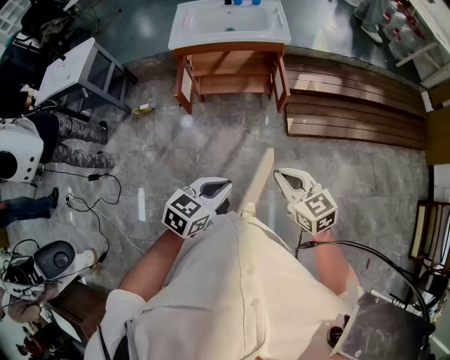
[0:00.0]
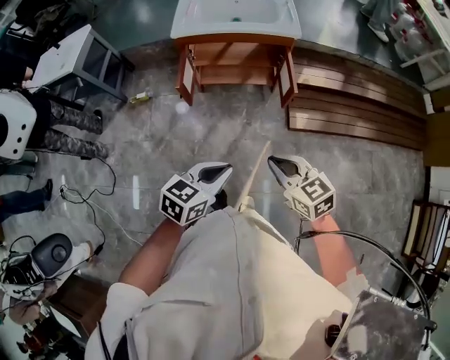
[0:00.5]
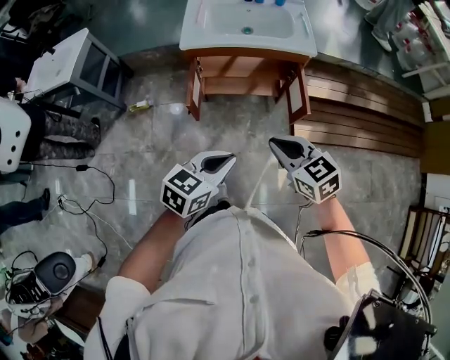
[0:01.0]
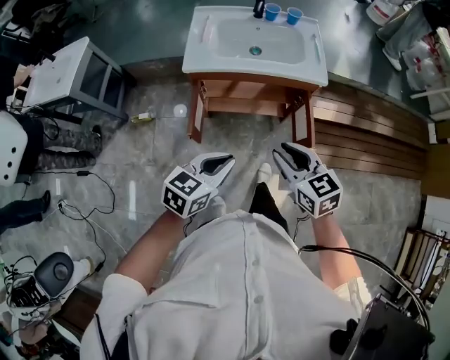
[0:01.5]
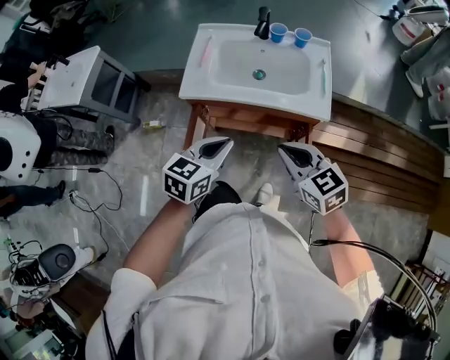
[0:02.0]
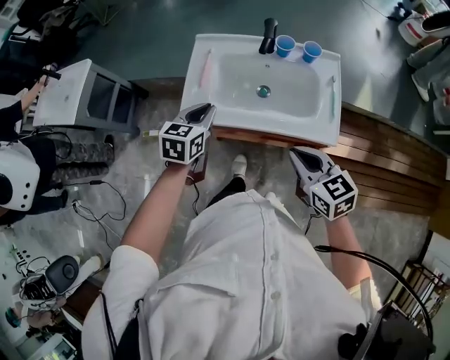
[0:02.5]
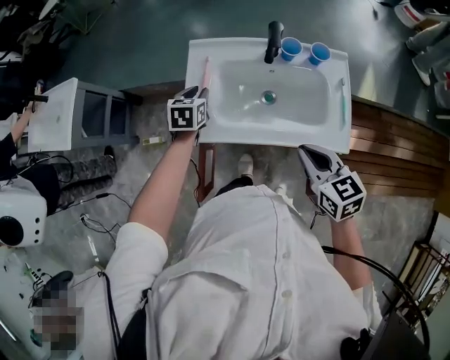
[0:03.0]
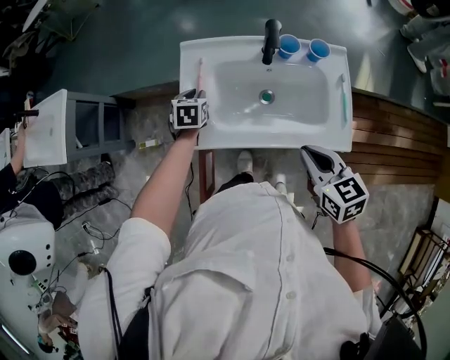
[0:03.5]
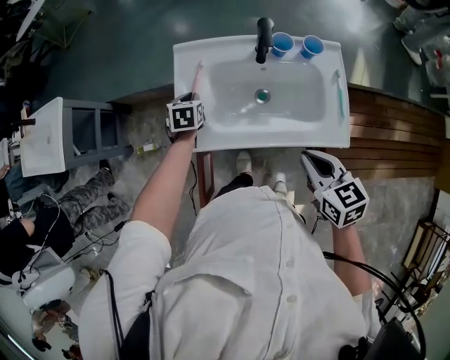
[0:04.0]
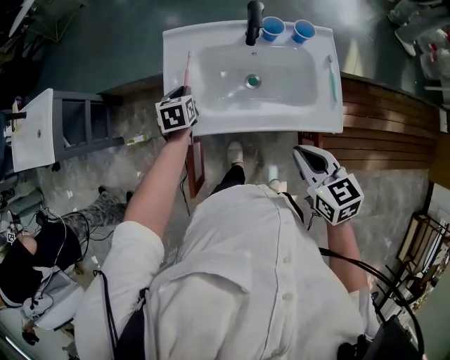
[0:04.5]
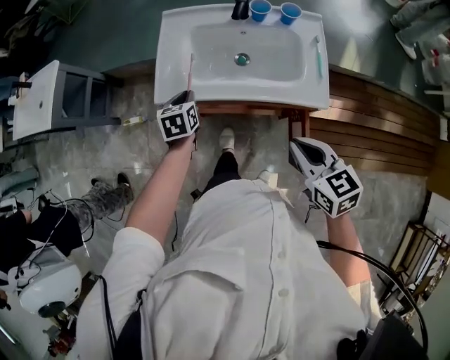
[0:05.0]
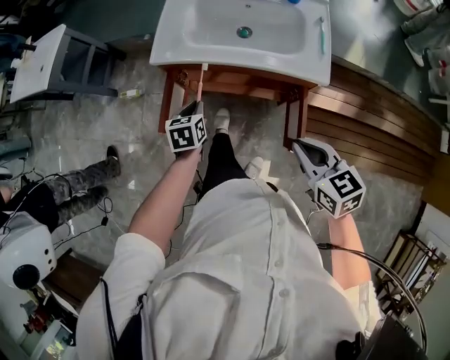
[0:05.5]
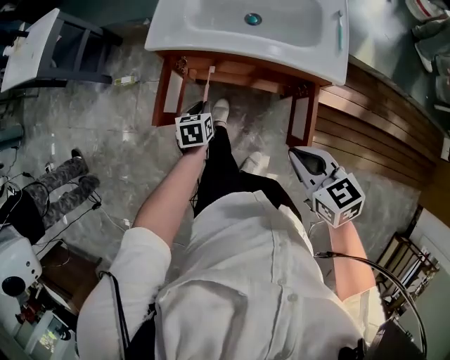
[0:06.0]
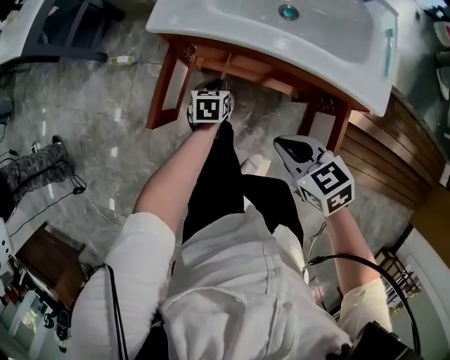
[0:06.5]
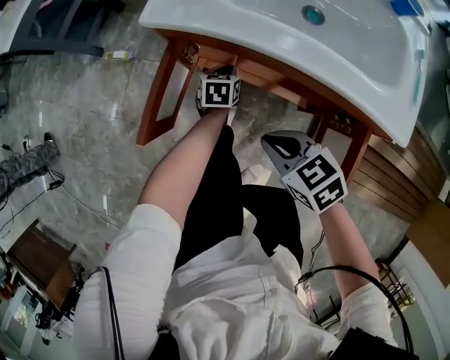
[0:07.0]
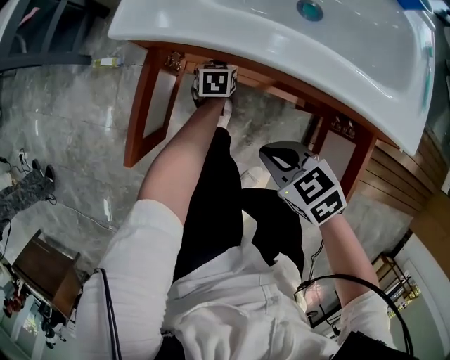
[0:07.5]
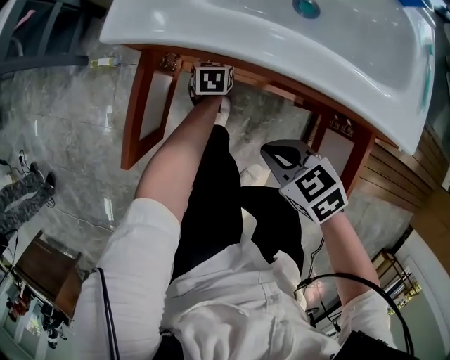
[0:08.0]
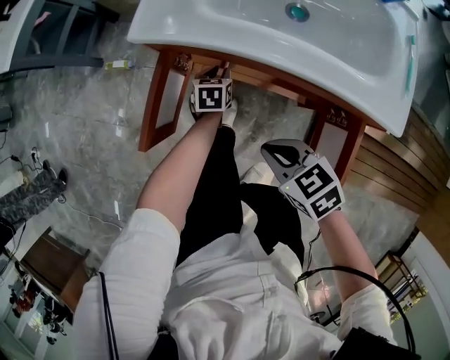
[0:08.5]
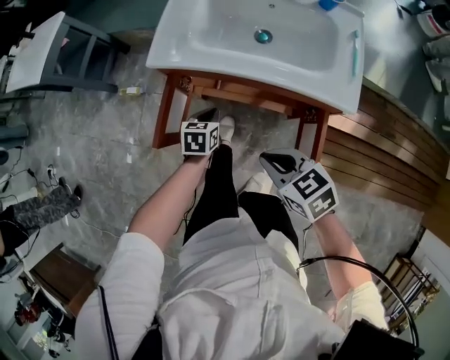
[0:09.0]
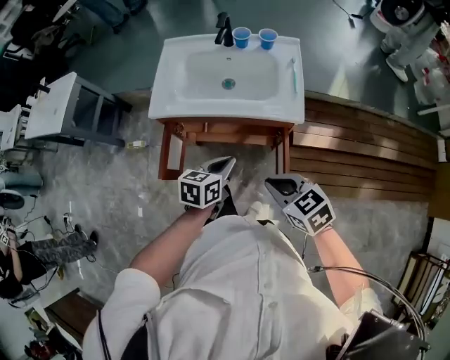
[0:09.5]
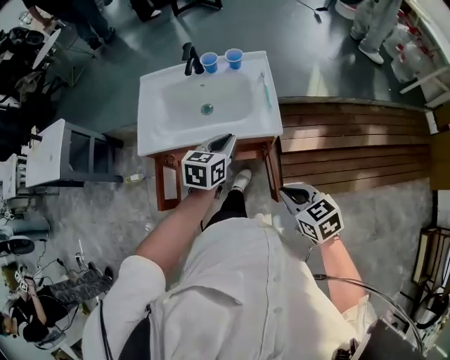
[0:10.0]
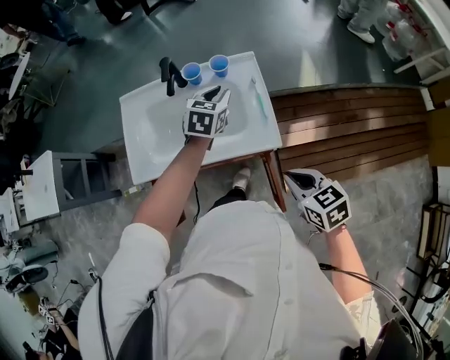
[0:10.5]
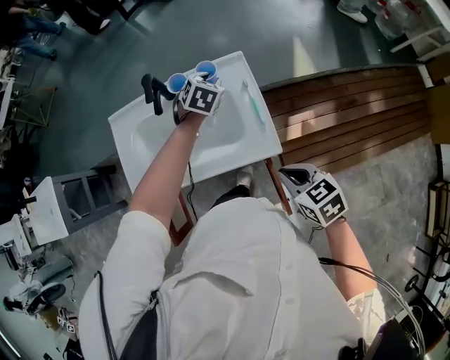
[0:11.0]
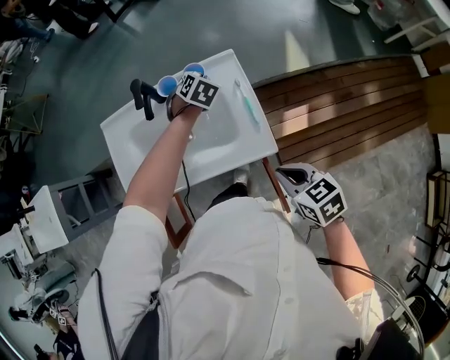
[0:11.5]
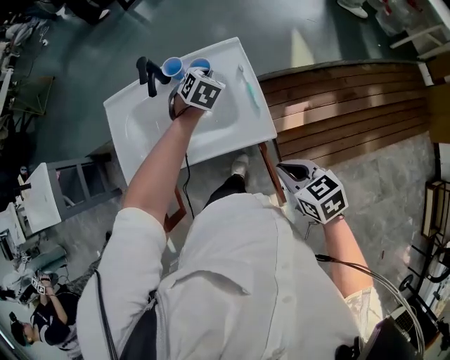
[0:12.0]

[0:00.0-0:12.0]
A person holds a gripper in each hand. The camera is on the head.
0:00.0 to 0:02.0: Both grippers are carried forward, roughly 50 cm. The right gripper opens, then closes again.
0:02.0 to 0:04.0: The left gripper travels forward and downward by roughly 50 cm, and swivels approximately 30 degrees, while the right gripper travels forward by roughly 15 cm, and turns by about 30 degrees.
0:04.0 to 0:06.0: The left gripper is displaced backward by some 35 cm; the right gripper shifts some 25 cm backward, and turns by about 20 degrees.
0:06.0 to 0:08.0: The right gripper travels downward and forward by roughly 30 cm, and rotates approximately 20 degrees. The left gripper shifts roughly 30 cm downward, forward and to the right.
0:08.0 to 0:10.0: The left gripper shifts about 50 cm upward, and swivels roughly 40 degrees. The right gripper travels upward by roughly 30 cm, and turns by about 30 degrees.
0:10.0 to 0:12.0: The left gripper is displaced forward by about 25 cm, and turns by roughly 40 degrees. The right gripper heads forward, covering approximately 10 cm.

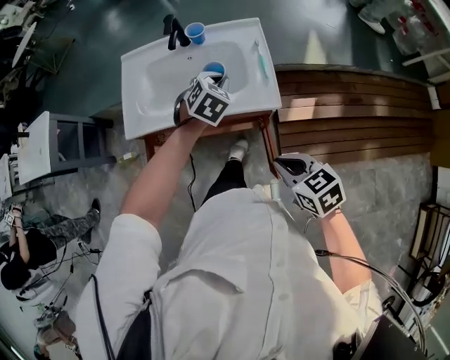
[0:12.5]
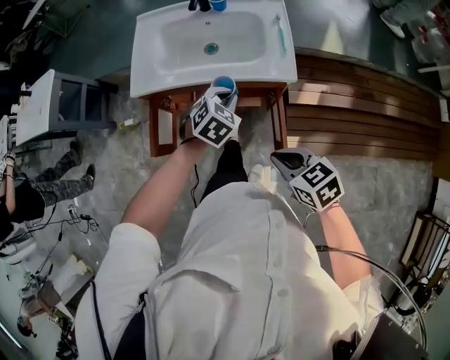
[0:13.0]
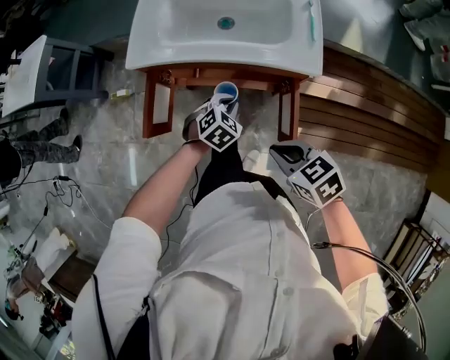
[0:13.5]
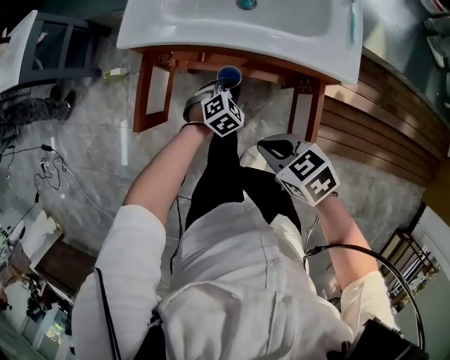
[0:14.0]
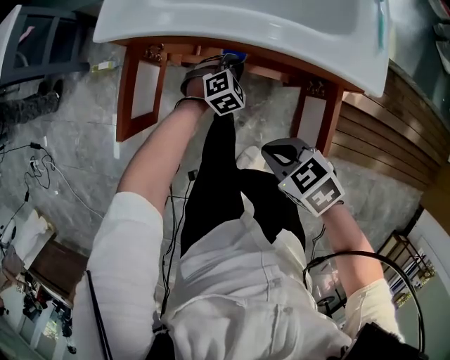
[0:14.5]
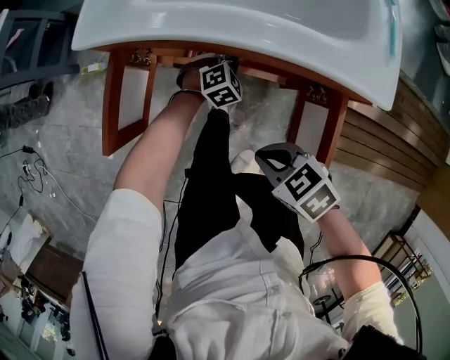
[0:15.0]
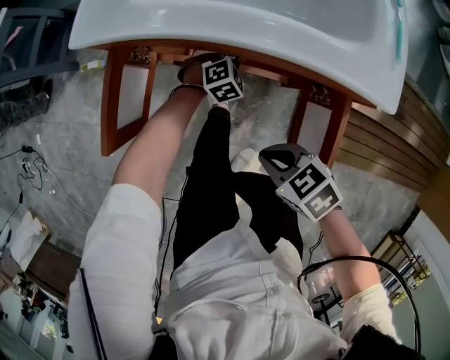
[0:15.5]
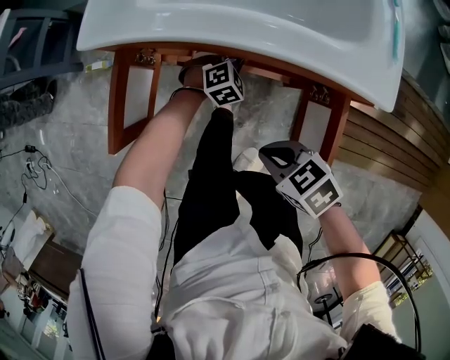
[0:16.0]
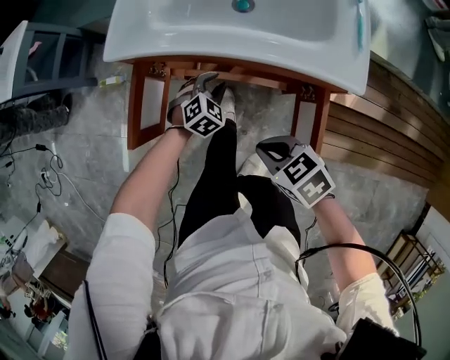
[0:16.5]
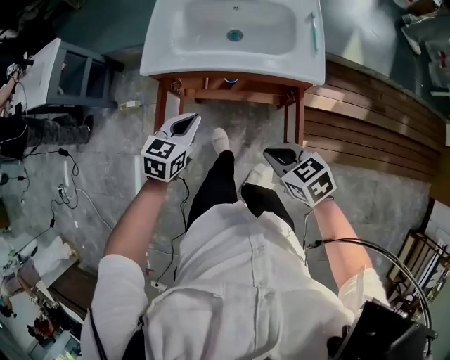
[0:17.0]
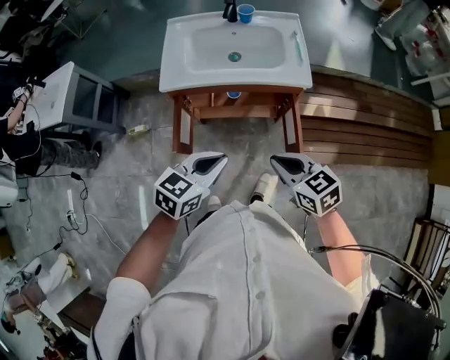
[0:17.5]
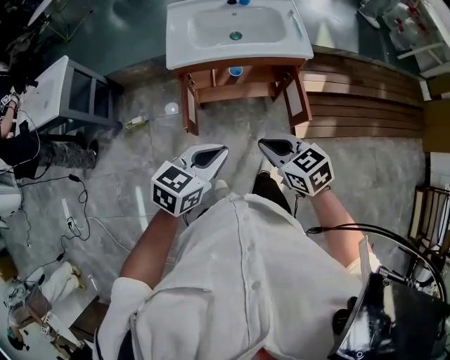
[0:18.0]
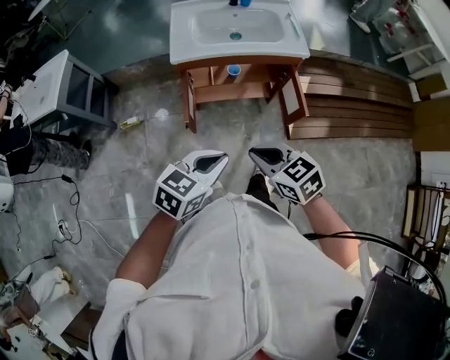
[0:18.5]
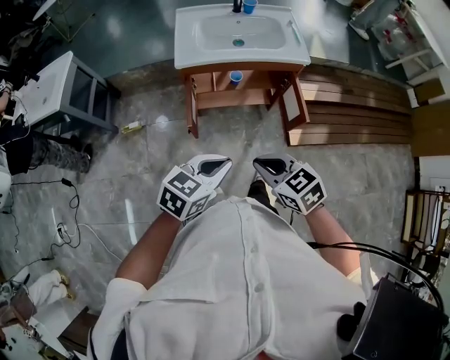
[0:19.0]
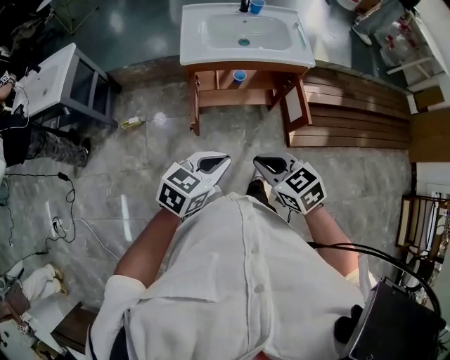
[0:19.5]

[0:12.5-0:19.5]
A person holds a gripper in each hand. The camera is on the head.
0:12.5 to 0:14.5: The left gripper moves downward, about 35 cm; the right gripper is displaced downward and to the left by approximately 25 cm, and rotates some 30 degrees.
0:14.5 to 0:16.0: The left gripper shifts by about 5 cm.
0:16.0 to 0:17.5: The right gripper travels upward by some 30 cm, and rotates about 40 degrees. Meanwhile the left gripper goes approximately 50 cm upward, rotates roughly 50 degrees, and closes up.
0:17.5 to 0:19.5: The right gripper goes some 25 cm to the left and backward. The left gripper goes approximately 20 cm backward and to the left.

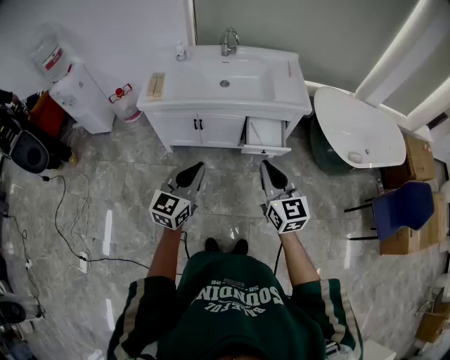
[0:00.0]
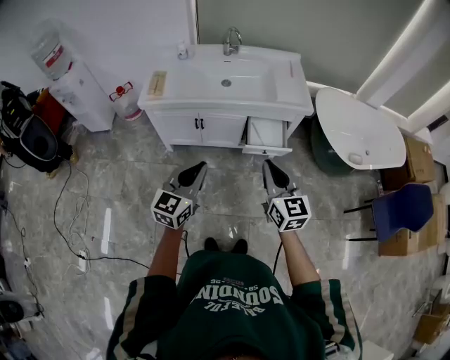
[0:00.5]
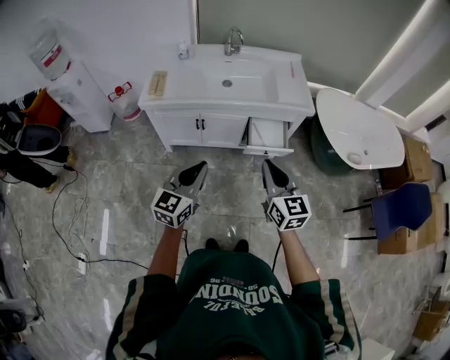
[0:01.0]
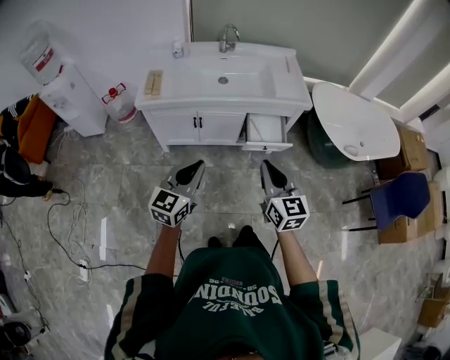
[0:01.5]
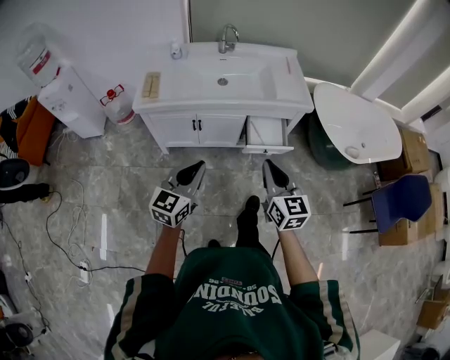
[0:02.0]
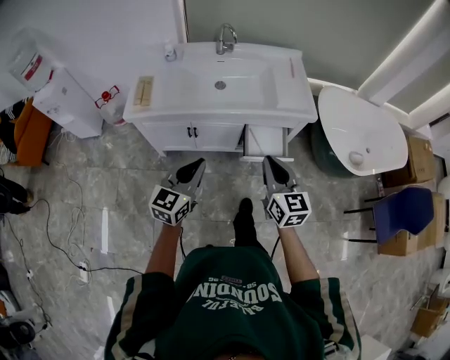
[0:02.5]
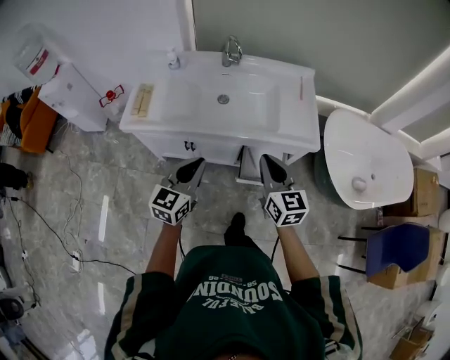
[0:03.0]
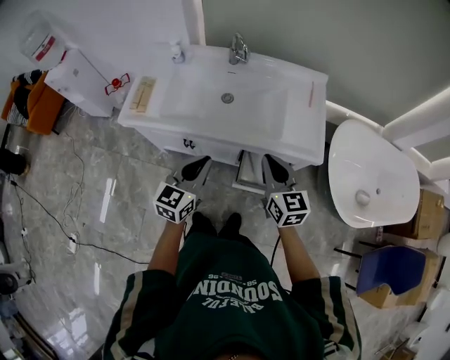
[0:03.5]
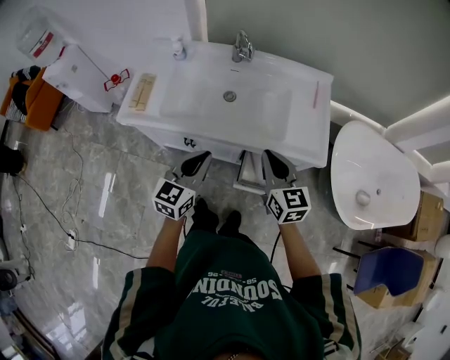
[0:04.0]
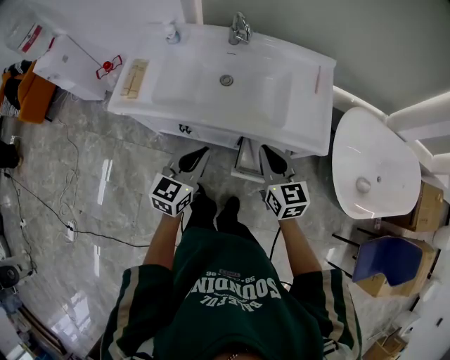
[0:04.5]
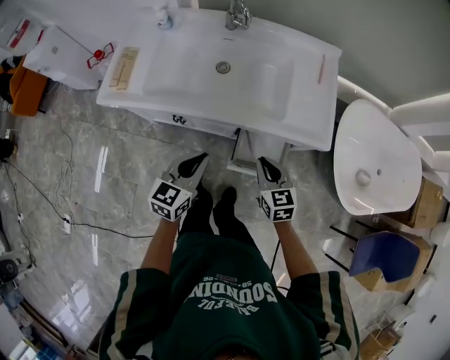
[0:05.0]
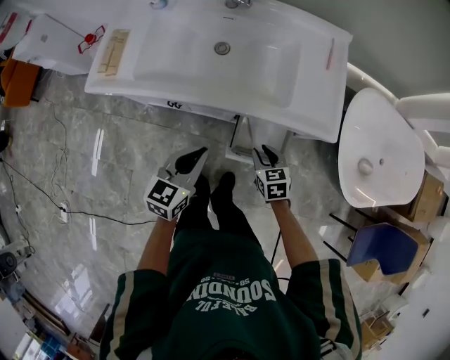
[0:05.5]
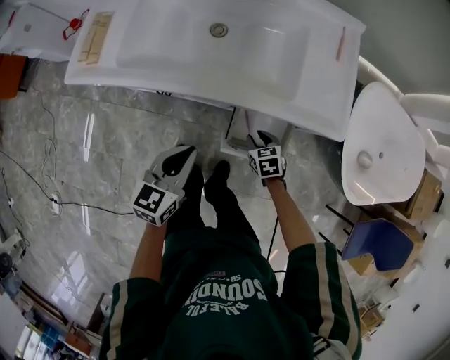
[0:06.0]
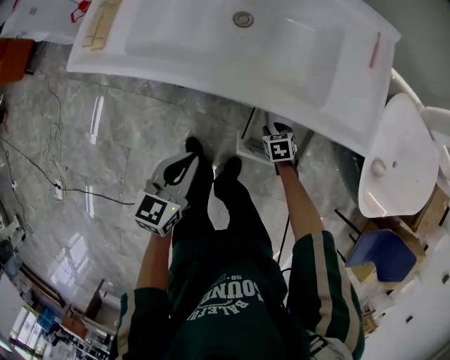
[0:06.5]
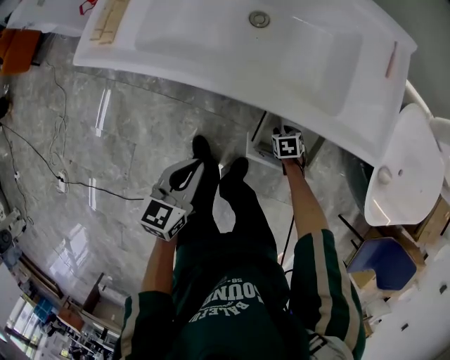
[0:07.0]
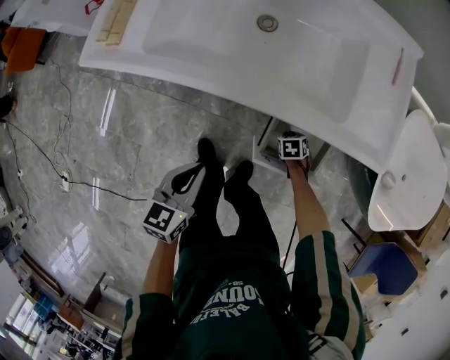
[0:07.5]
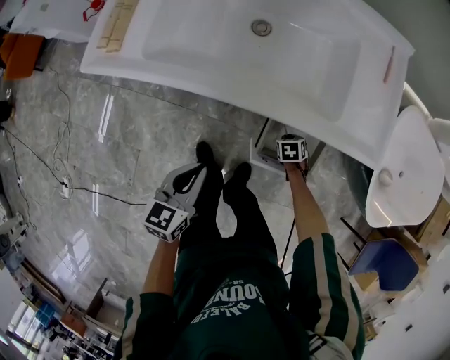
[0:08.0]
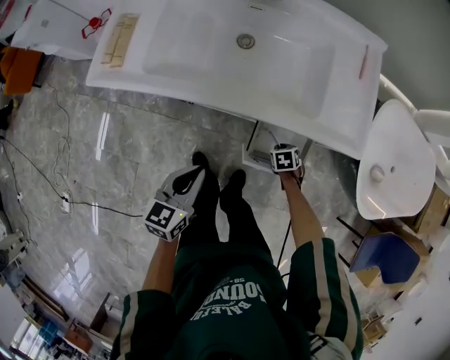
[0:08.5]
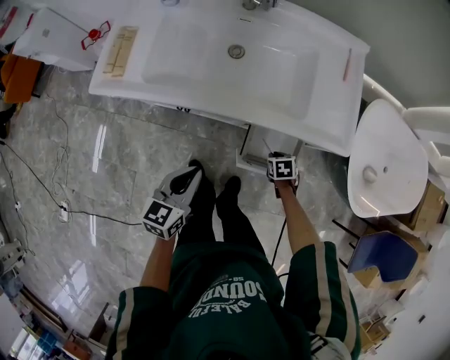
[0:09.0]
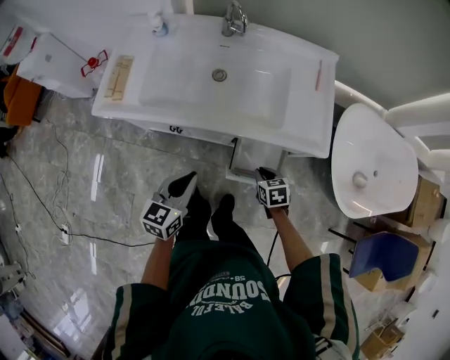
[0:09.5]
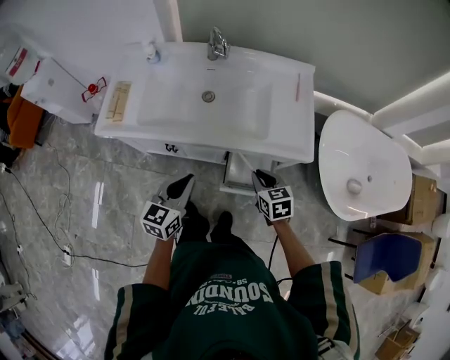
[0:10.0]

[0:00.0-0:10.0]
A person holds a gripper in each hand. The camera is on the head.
0:00.0 to 0:02.0: The right gripper moves about 5 cm, while the left gripper shifts by approximately 5 cm.
0:02.0 to 0:04.0: The two grippers go some 35 cm forward.
0:04.0 to 0:06.0: The right gripper goes some 40 cm downward, tips its fingers downward by approximately 50 degrees, and opens its fingers, while the left gripper moves downward, some 15 cm.
0:06.0 to 0:08.0: The right gripper goes some 15 cm downward, and changes its angle by some 20 degrees. The left gripper moves some 10 cm.
0:08.0 to 0:10.0: The left gripper heads upward, covering about 15 cm, while the right gripper moves upward, about 40 cm, and tips its fingers upward by roughly 40 degrees.
